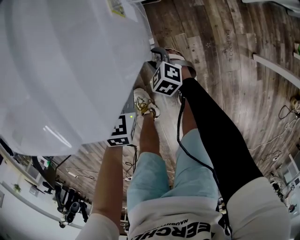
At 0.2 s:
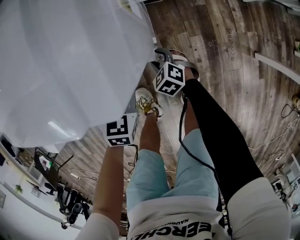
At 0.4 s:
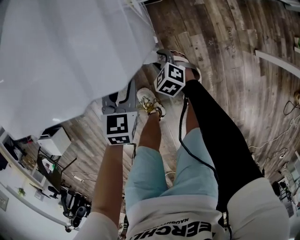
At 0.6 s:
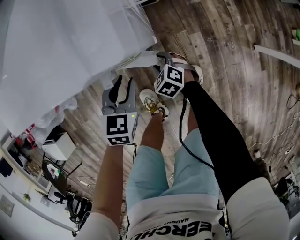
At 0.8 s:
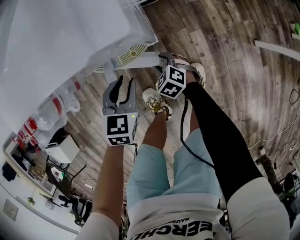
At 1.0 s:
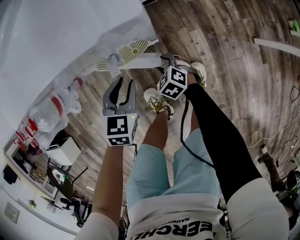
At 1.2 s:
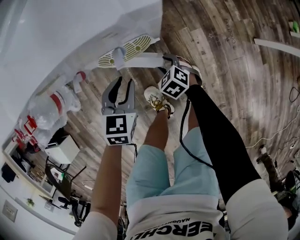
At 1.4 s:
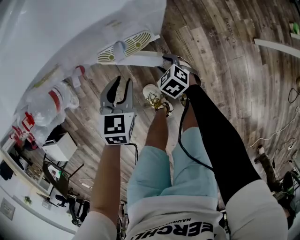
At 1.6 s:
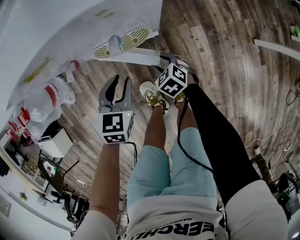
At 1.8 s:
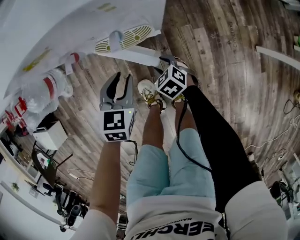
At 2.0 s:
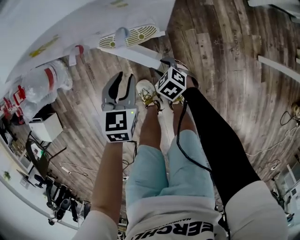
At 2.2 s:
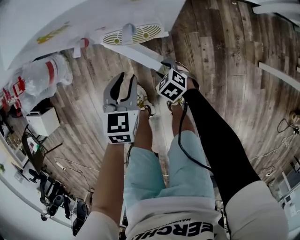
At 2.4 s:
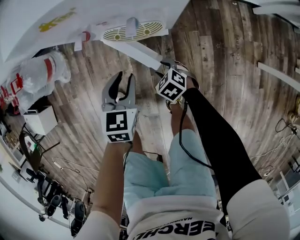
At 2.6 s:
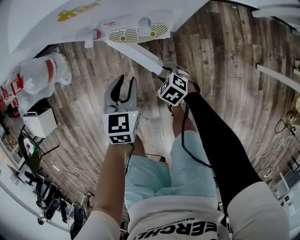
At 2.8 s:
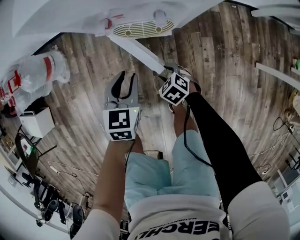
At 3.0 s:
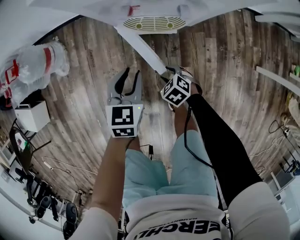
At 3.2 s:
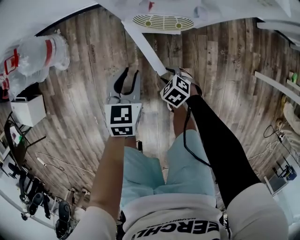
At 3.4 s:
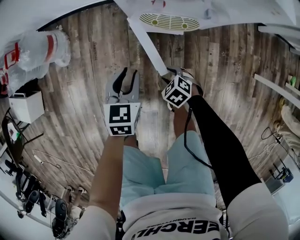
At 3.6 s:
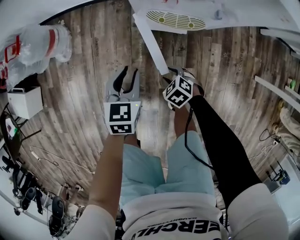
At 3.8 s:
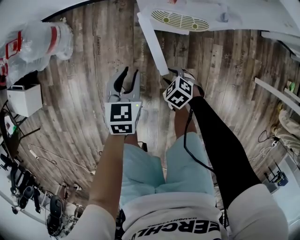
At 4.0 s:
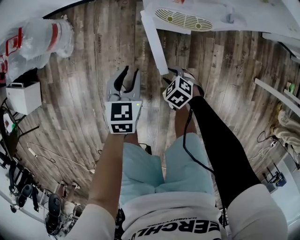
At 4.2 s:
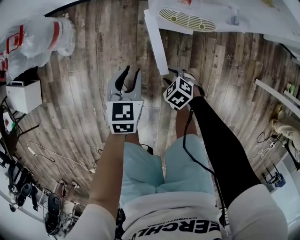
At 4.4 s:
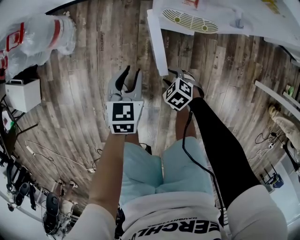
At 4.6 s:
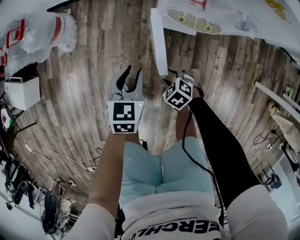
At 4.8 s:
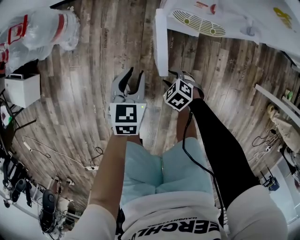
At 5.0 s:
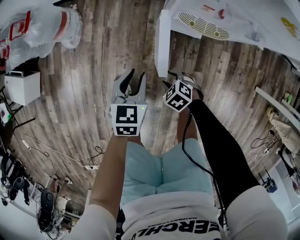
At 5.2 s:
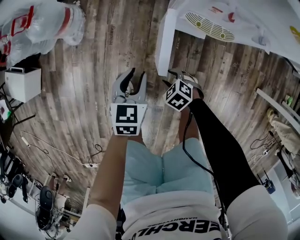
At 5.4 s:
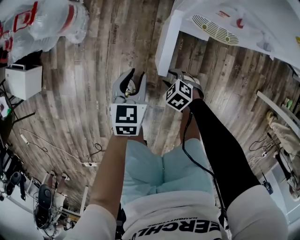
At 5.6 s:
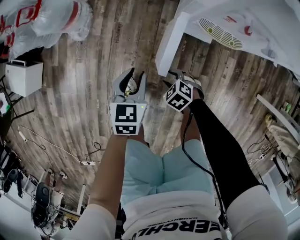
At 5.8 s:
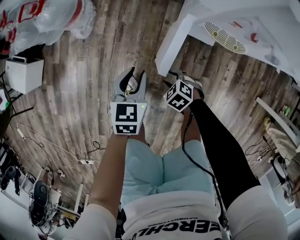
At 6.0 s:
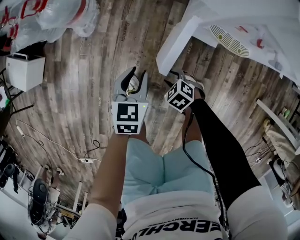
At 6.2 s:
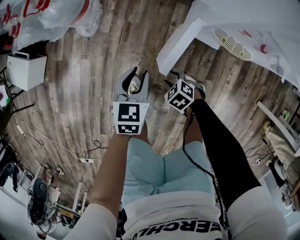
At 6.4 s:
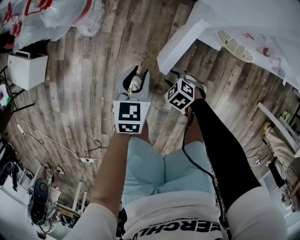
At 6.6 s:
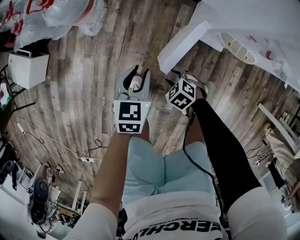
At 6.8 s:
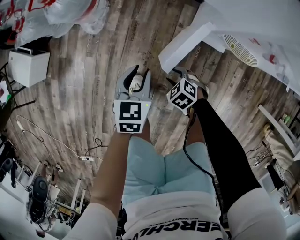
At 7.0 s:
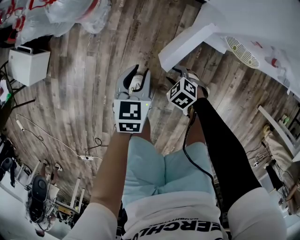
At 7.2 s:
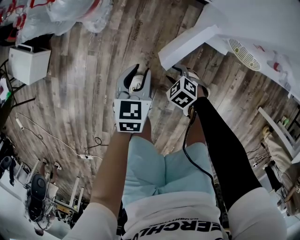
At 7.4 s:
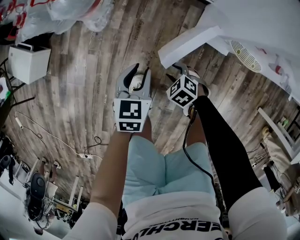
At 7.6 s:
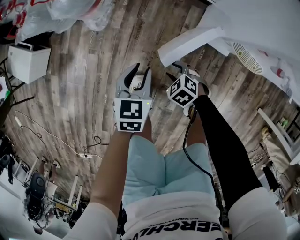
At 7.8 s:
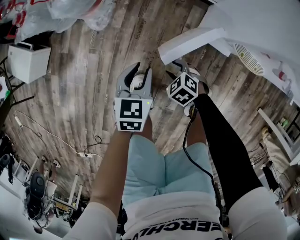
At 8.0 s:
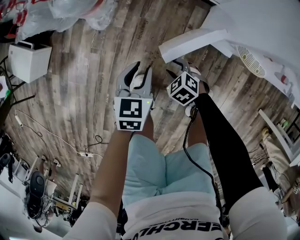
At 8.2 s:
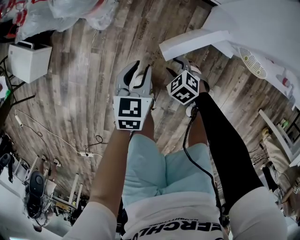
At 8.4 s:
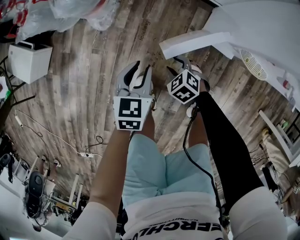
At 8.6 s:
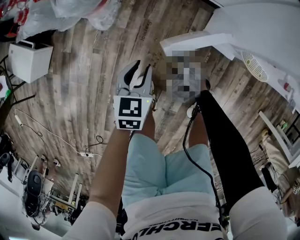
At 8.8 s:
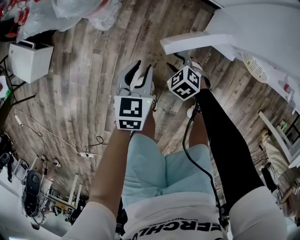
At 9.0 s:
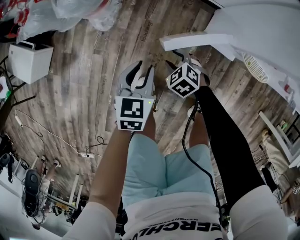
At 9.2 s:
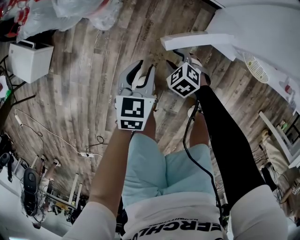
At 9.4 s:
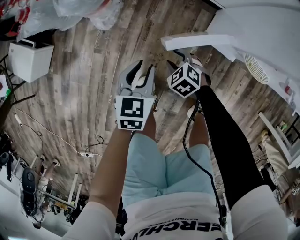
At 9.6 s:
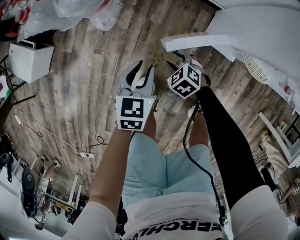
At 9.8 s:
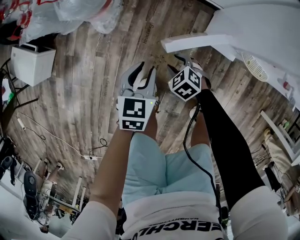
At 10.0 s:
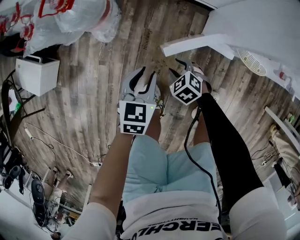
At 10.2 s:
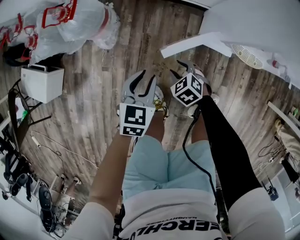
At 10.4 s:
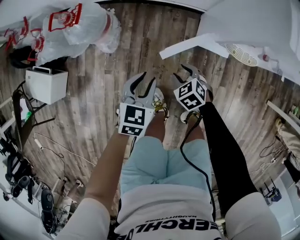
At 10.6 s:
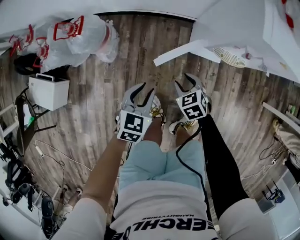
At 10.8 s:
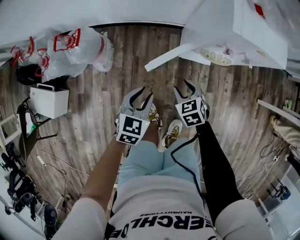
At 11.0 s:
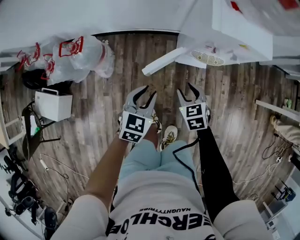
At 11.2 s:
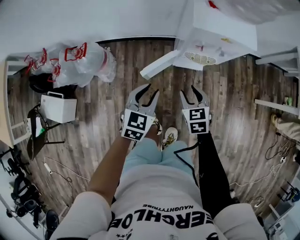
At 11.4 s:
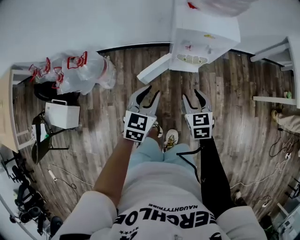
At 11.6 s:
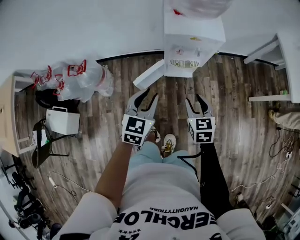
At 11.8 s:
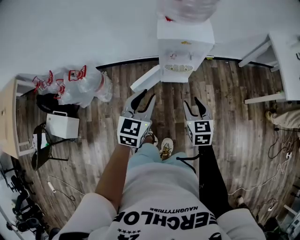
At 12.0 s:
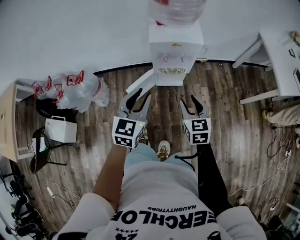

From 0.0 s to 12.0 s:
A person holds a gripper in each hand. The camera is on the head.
From 0.0 s to 1.6 s: The right gripper travels backward by roughly 10 cm; the left gripper moves to the left and backward, about 10 cm.
From 1.6 s to 3.0 s: The left gripper moves to the left, some 10 cm. Meanwhile the right gripper moves to the left and backward, about 10 cm.
From 3.0 s to 4.4 s: The two grippers go approximately 10 cm to the left.
From 4.4 s to 6.0 s: The two grippers go about 15 cm to the left and forward.
From 6.0 s to 7.6 s: Both grippers travel together forward, approximately 5 cm.
From 7.6 s to 9.0 s: The right gripper heads forward, covering some 10 cm.
From 9.0 s to 10.4 s: The two grippers go roughly 10 cm upward. The left gripper changes its angle by about 20 degrees.
From 10.4 s to 12.0 s: Both grippers travel together upward and to the right, some 50 cm. The left gripper rotates about 30 degrees. The right gripper points its fingers about 40 degrees further upward.

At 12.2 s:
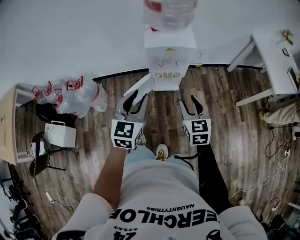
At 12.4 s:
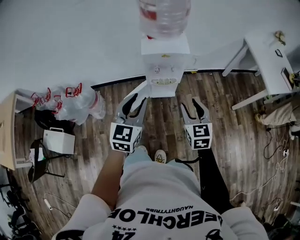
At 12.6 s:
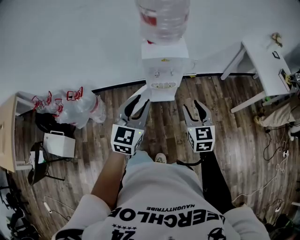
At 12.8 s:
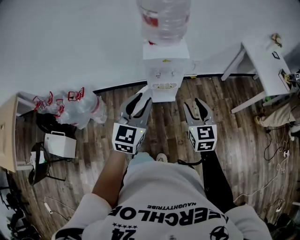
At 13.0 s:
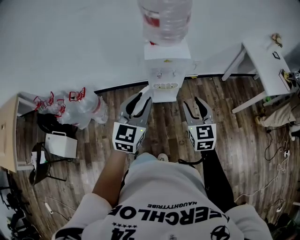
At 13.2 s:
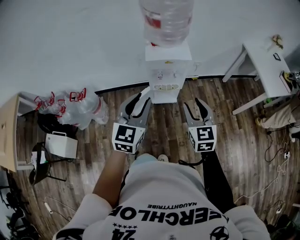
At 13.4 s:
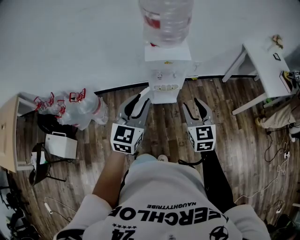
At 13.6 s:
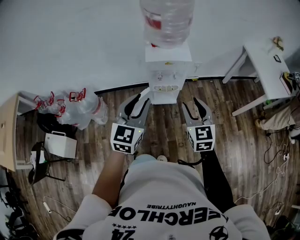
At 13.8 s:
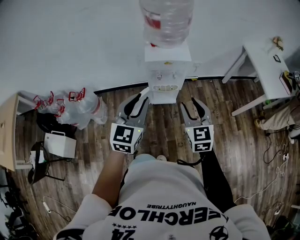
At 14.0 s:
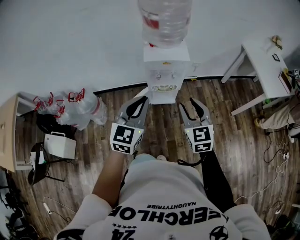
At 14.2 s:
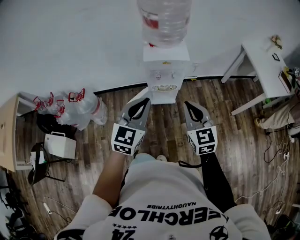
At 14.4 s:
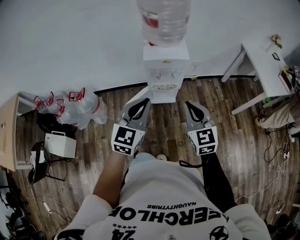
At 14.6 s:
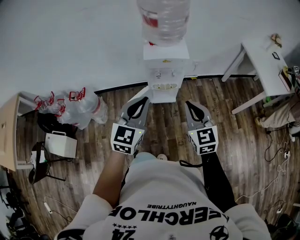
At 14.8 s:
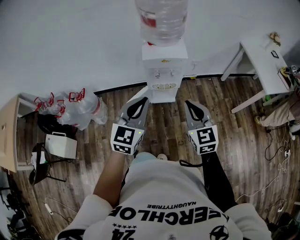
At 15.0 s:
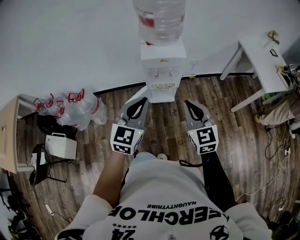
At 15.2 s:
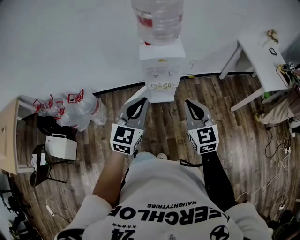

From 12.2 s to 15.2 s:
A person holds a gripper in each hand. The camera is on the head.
From 12.2 s to 13.8 s: The two grippers go some 10 cm upward.
From 13.8 s to 15.2 s: The right gripper closes its fingers.

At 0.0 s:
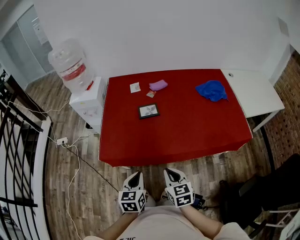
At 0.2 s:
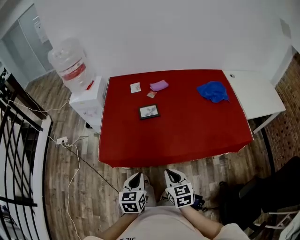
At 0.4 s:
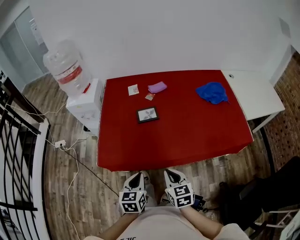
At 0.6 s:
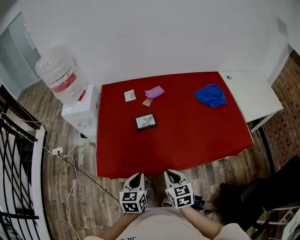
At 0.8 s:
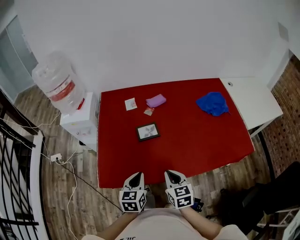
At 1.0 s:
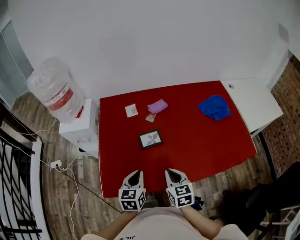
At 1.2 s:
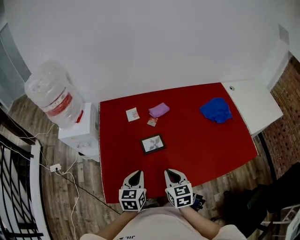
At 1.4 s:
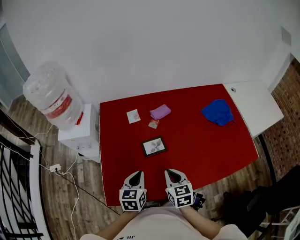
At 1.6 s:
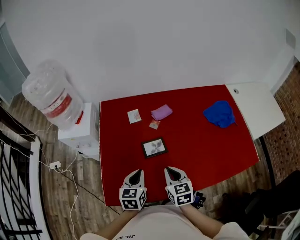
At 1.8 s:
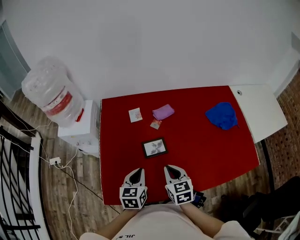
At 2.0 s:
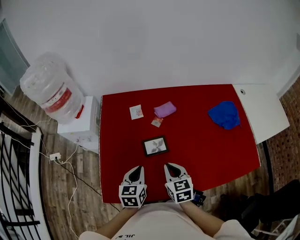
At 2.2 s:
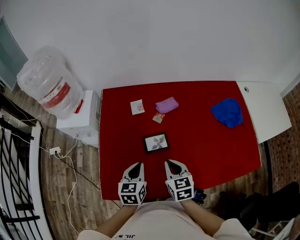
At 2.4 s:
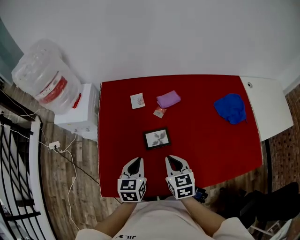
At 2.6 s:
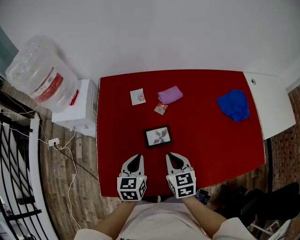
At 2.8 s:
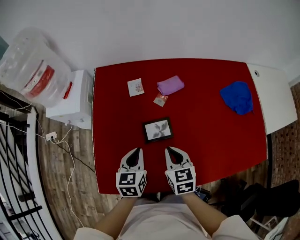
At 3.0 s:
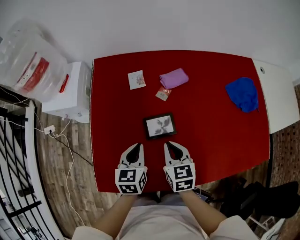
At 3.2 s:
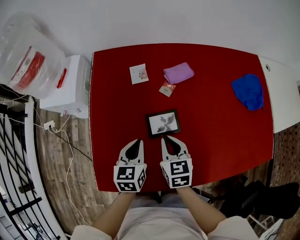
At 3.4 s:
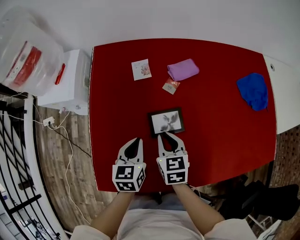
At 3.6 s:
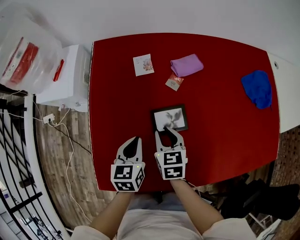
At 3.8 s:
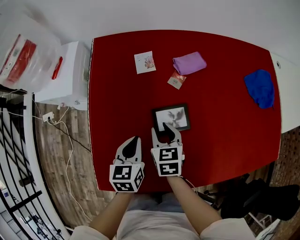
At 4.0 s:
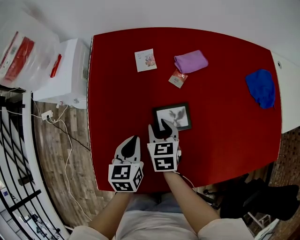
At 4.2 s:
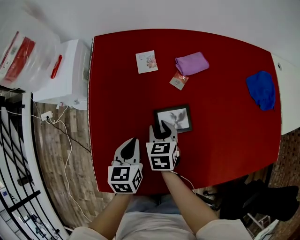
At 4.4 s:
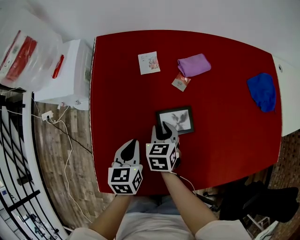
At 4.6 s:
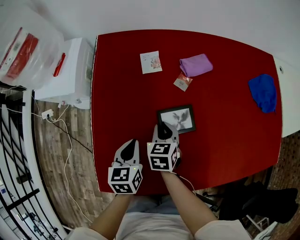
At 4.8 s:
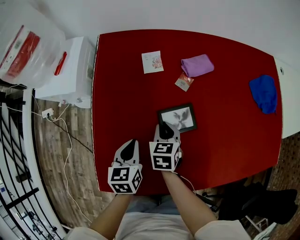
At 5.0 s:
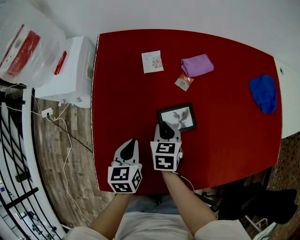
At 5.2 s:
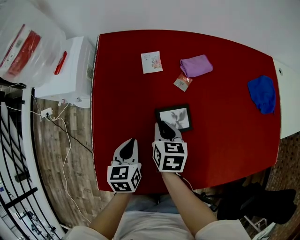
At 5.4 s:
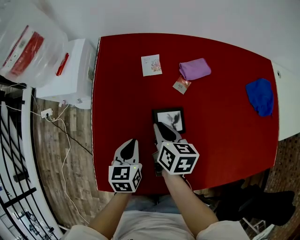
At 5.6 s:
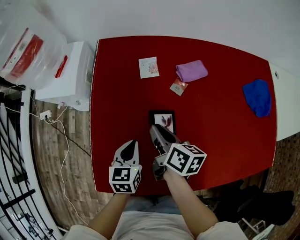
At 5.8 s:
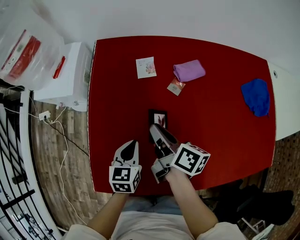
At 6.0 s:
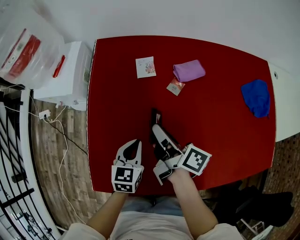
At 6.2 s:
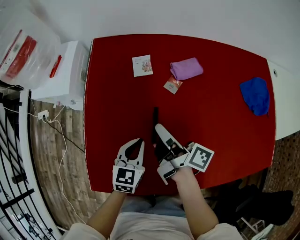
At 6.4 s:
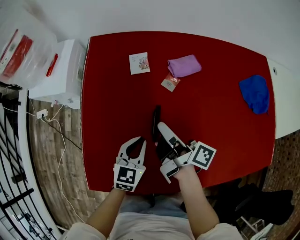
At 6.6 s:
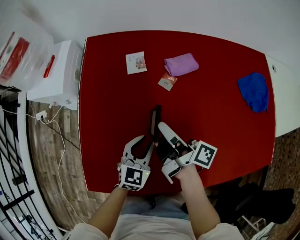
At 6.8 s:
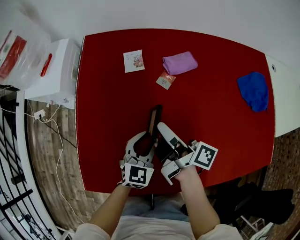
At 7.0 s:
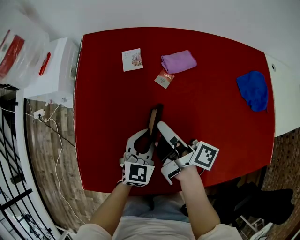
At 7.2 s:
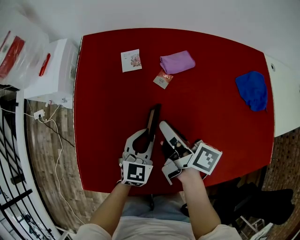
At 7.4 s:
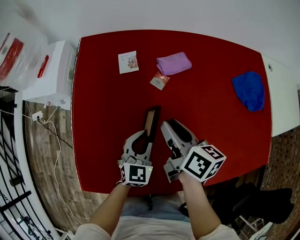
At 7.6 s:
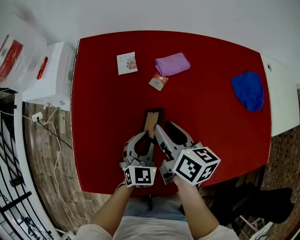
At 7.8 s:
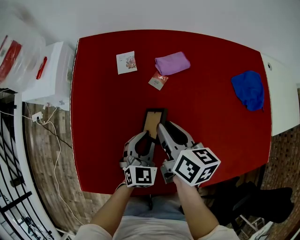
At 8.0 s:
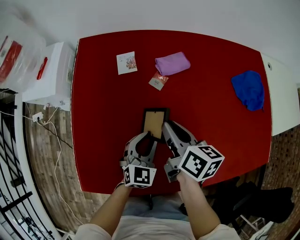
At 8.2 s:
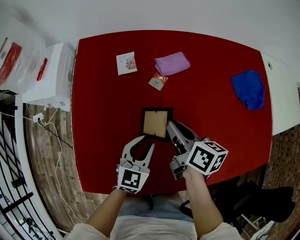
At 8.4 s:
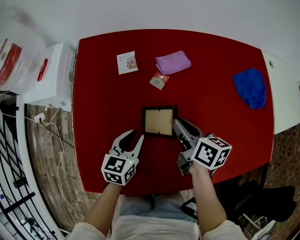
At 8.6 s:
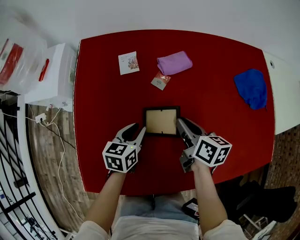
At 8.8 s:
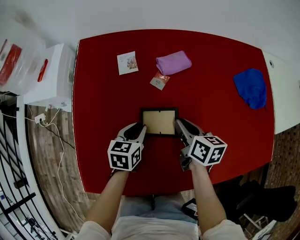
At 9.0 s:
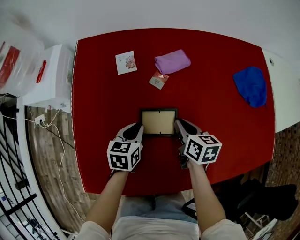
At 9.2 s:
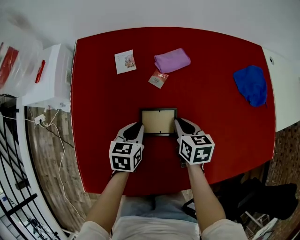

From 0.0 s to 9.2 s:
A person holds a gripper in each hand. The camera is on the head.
From 0.0 s to 1.6 s: Both grippers travel together forward, about 30 cm.
From 1.6 s to 3.0 s: The two grippers go about 10 cm forward and downward.
From 3.0 s to 4.6 s: The right gripper shifts roughly 15 cm downward, to the left and forward, while the left gripper moves downward and to the left, some 10 cm.
From 4.6 s to 6.2 s: The left gripper travels to the right by about 5 cm, and swivels some 20 degrees. Meanwhile the right gripper heads upward, covering some 15 cm, and points its fingers about 50 degrees further upward.
From 6.2 s to 7.6 s: Both grippers travel together to the right, roughly 10 cm. The left gripper turns by some 20 degrees, while the right gripper rotates roughly 40 degrees, and opens its fingers.
From 7.6 s to 9.2 s: The right gripper is displaced downward and to the right by approximately 15 cm, rotates roughly 30 degrees, and closes its fingers; the left gripper shifts by some 5 cm, and swivels roughly 40 degrees.
